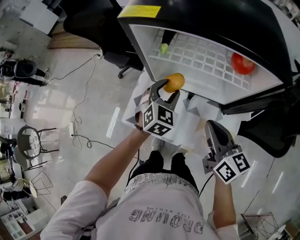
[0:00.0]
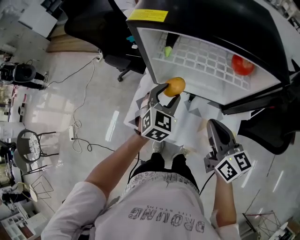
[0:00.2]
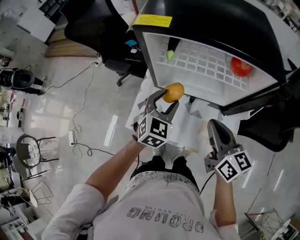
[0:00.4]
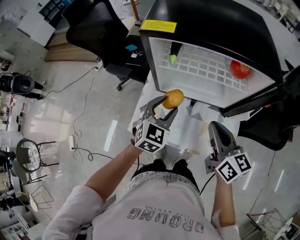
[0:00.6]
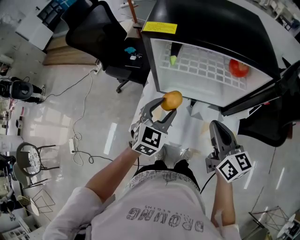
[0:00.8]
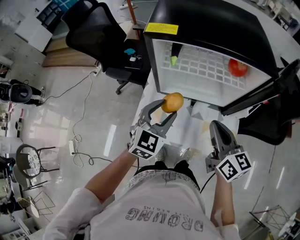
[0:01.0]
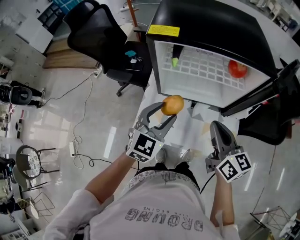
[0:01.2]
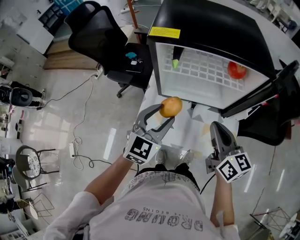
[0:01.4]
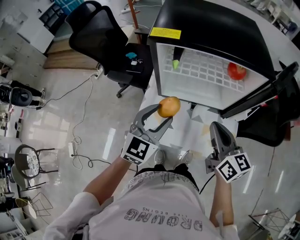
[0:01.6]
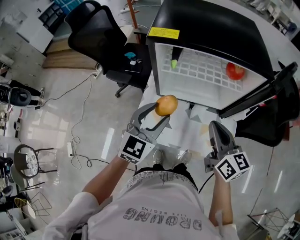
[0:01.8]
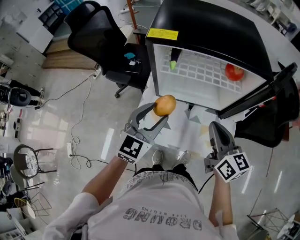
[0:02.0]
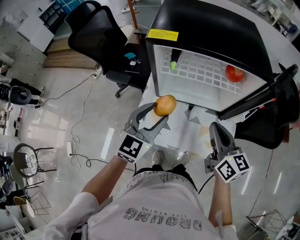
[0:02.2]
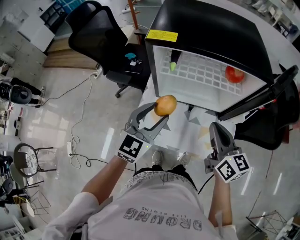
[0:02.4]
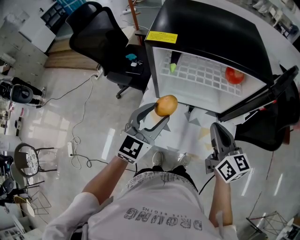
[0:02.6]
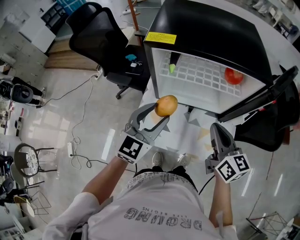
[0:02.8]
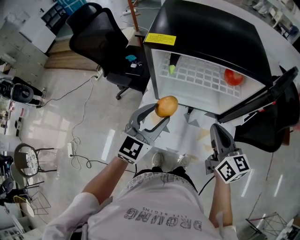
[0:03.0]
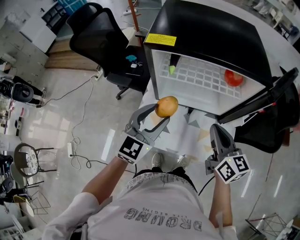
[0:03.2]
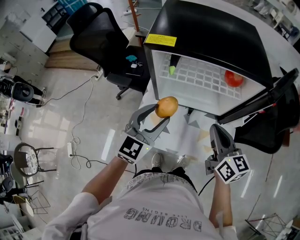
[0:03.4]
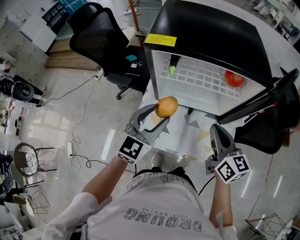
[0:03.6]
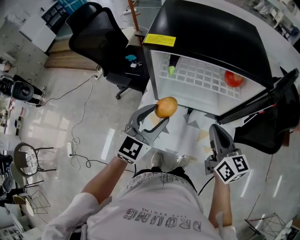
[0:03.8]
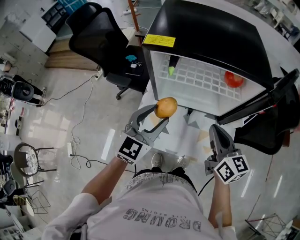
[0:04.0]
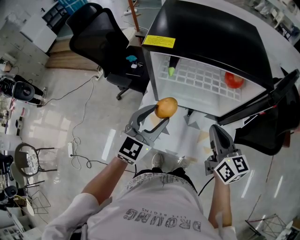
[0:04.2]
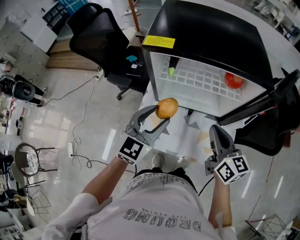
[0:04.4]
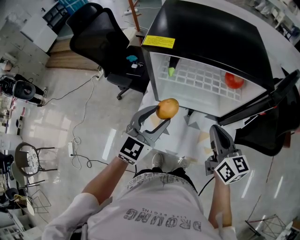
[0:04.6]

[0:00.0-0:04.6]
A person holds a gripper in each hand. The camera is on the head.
0:00.0 to 0:01.6: The right gripper is displaced upward by approximately 5 cm; the left gripper travels upward, backward and to the left by about 15 cm, and rotates some 20 degrees.
0:01.6 to 0:04.6: There are only small adjustments of the grippers.

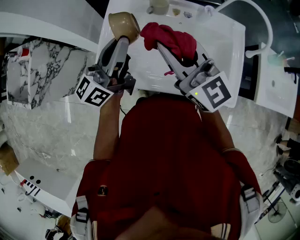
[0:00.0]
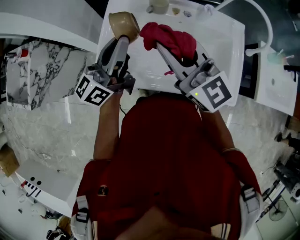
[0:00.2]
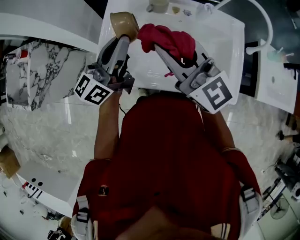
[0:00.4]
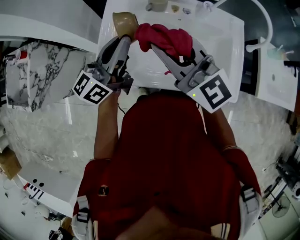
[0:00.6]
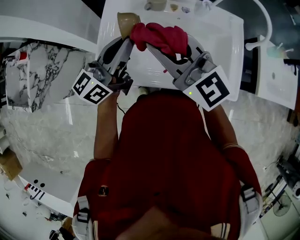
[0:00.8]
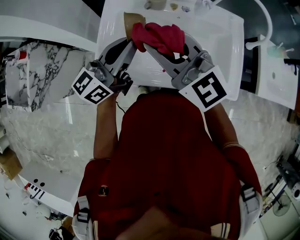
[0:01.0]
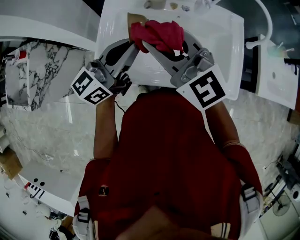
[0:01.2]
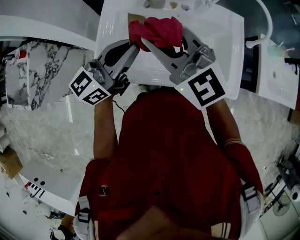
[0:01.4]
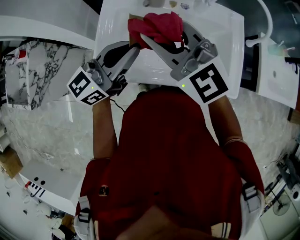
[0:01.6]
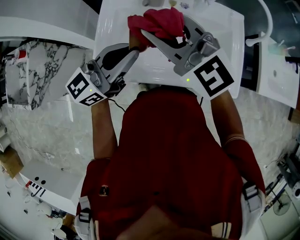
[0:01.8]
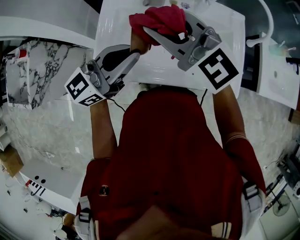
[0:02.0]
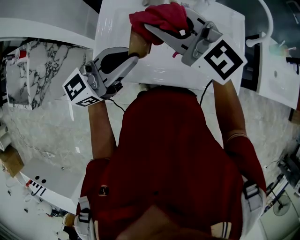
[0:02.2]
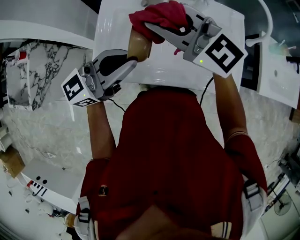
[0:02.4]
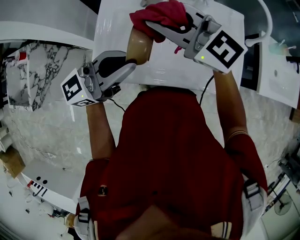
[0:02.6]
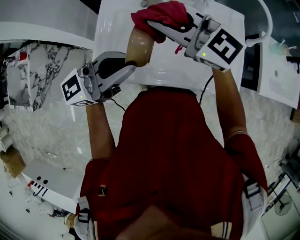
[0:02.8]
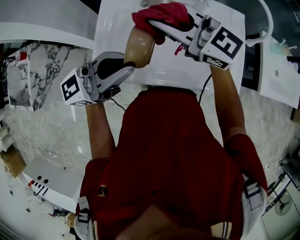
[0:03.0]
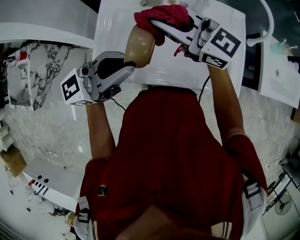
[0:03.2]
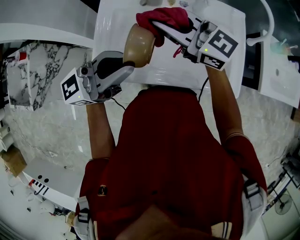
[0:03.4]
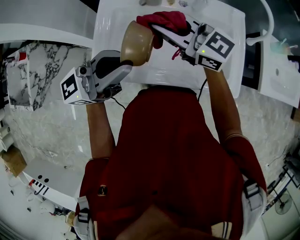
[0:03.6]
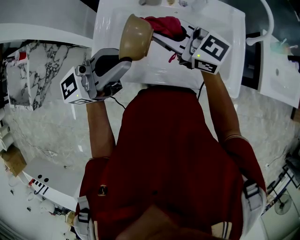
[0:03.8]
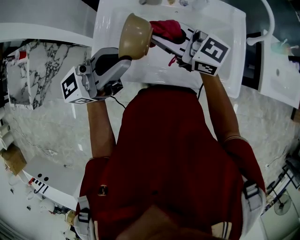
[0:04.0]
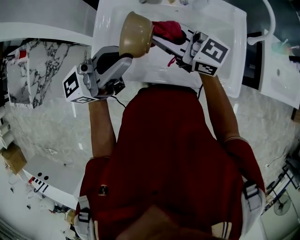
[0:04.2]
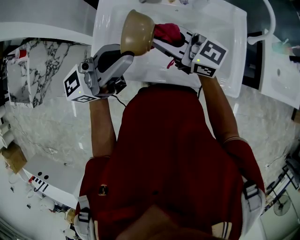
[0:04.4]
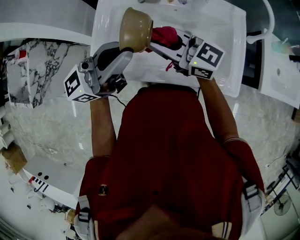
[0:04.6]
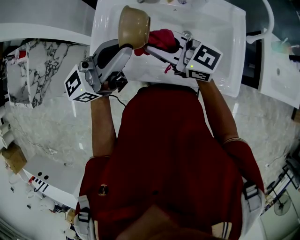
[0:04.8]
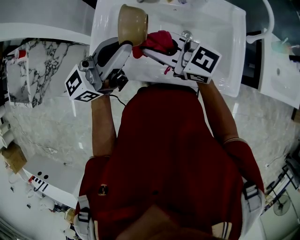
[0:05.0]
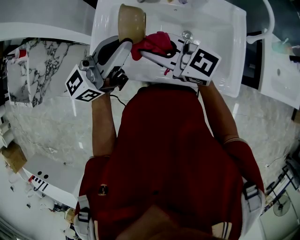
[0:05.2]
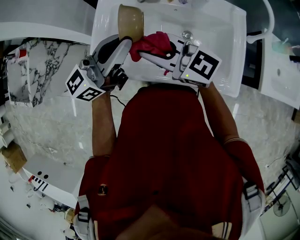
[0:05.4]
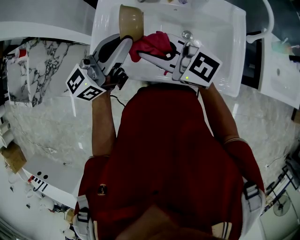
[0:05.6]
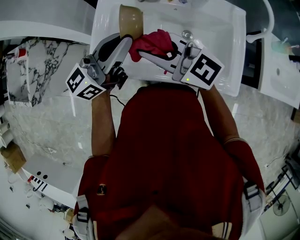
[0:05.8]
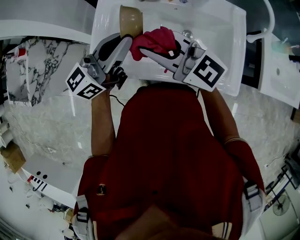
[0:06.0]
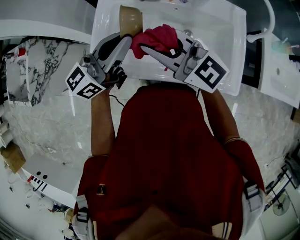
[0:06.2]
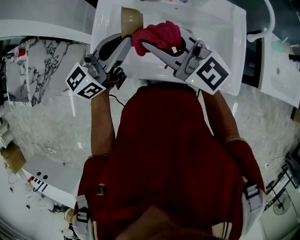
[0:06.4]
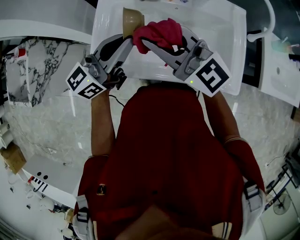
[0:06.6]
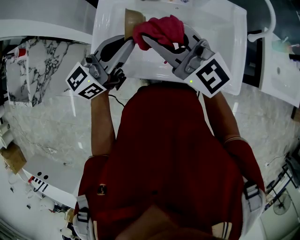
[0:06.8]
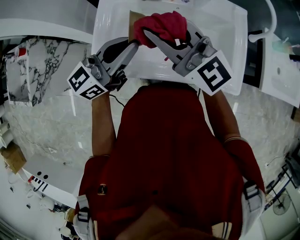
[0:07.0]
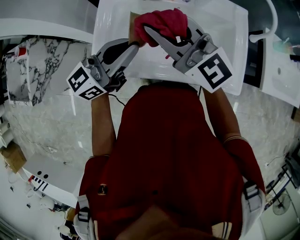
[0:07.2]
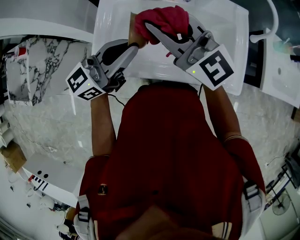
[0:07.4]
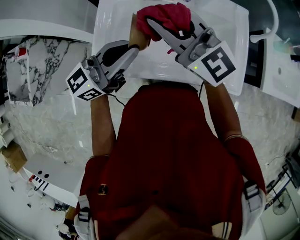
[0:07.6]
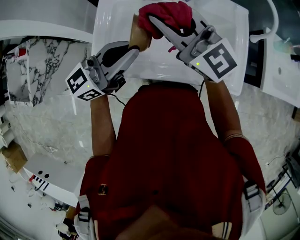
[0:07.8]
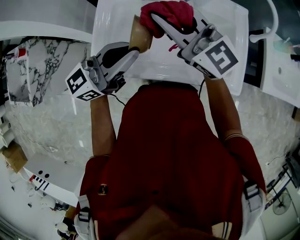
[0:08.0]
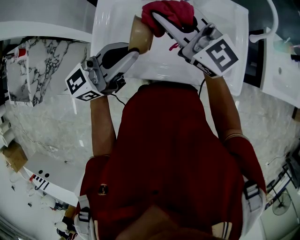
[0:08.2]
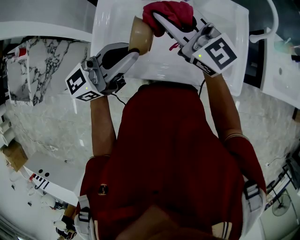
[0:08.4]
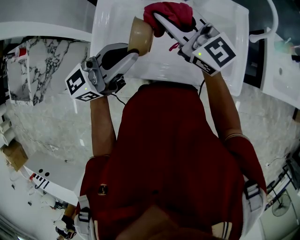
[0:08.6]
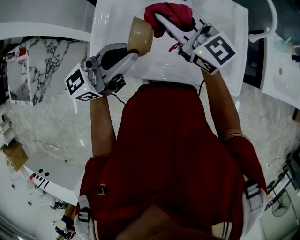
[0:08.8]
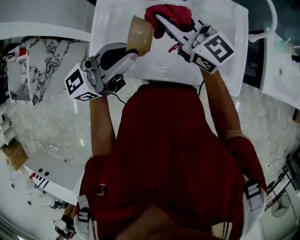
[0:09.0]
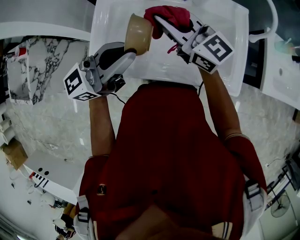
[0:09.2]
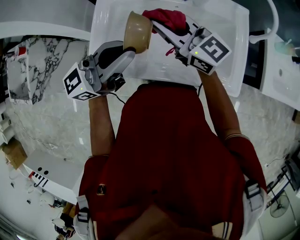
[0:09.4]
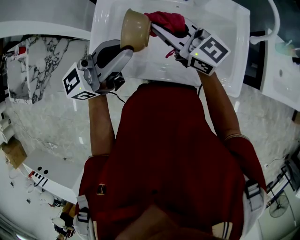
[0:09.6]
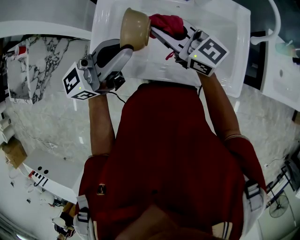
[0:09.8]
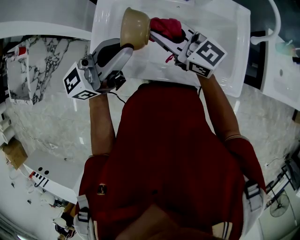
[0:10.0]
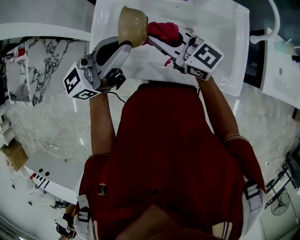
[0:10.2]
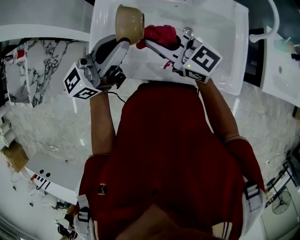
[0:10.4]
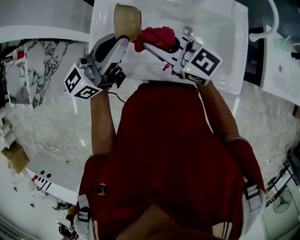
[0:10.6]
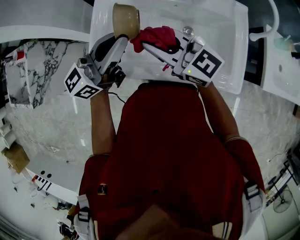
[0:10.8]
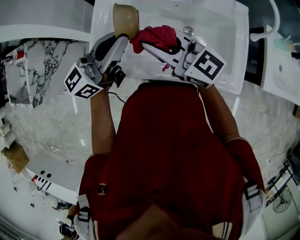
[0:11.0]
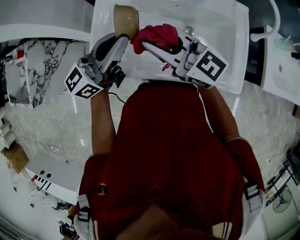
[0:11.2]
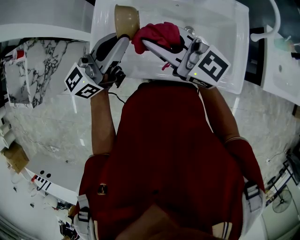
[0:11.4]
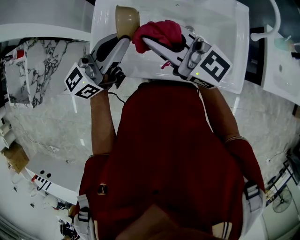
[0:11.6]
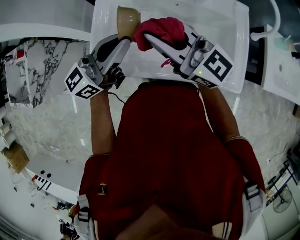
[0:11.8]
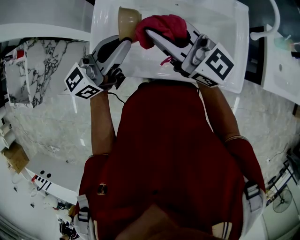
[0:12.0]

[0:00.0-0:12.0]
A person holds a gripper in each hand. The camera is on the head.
0:00.0 to 0:01.6: The right gripper swivels about 30 degrees, while the left gripper ends up roughly 5 cm from where it was, and swivels roughly 30 degrees.
0:01.6 to 0:03.0: The right gripper ends up about 5 cm from where it was, and rotates roughly 30 degrees.
0:03.0 to 0:04.4: The right gripper goes roughly 5 cm downward.
0:04.4 to 0:06.0: The right gripper shifts by about 5 cm, while the left gripper moves some 5 cm.
0:06.0 to 0:07.6: The right gripper travels forward by about 5 cm.
0:07.6 to 0:09.0: The right gripper shifts some 5 cm downward.
0:09.0 to 0:10.4: The right gripper moves backward, some 5 cm.
0:10.4 to 0:12.0: The right gripper shifts some 10 cm upward.

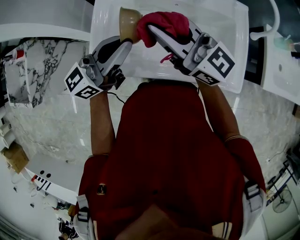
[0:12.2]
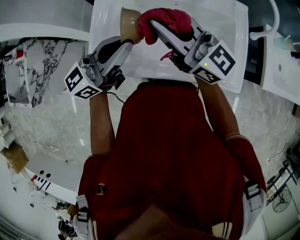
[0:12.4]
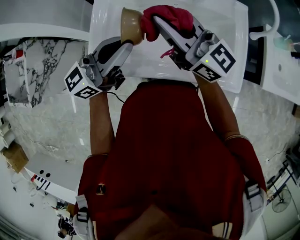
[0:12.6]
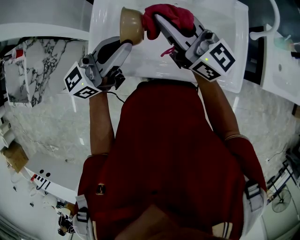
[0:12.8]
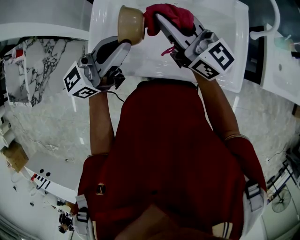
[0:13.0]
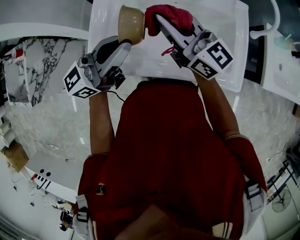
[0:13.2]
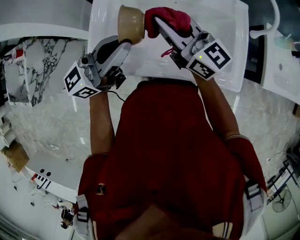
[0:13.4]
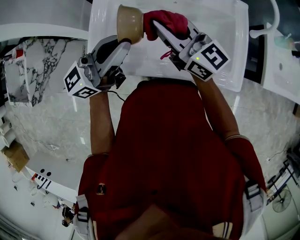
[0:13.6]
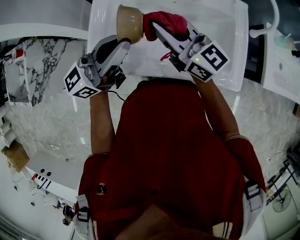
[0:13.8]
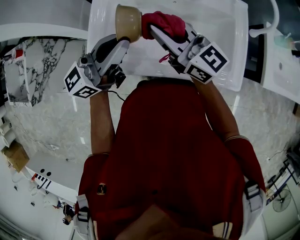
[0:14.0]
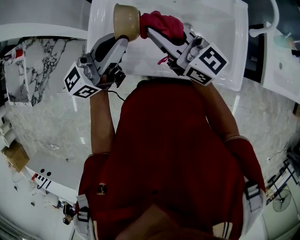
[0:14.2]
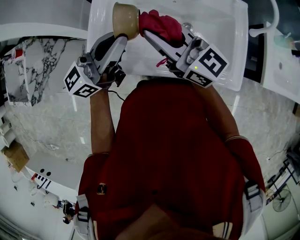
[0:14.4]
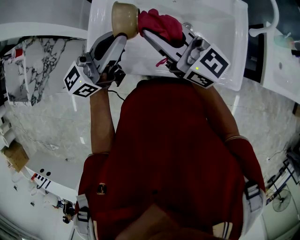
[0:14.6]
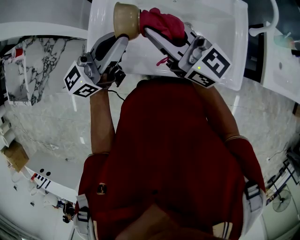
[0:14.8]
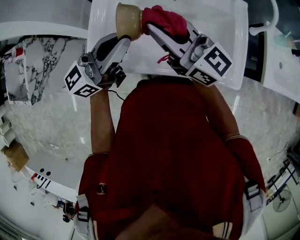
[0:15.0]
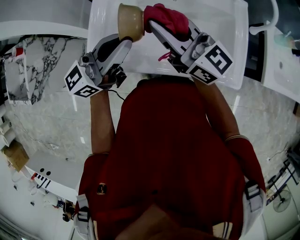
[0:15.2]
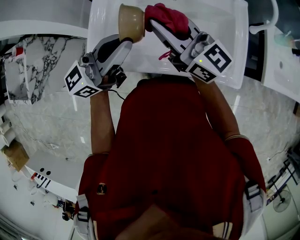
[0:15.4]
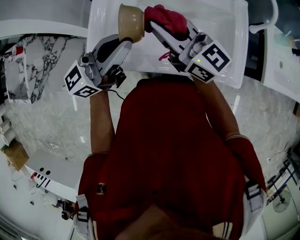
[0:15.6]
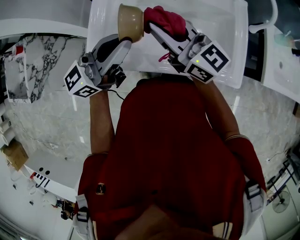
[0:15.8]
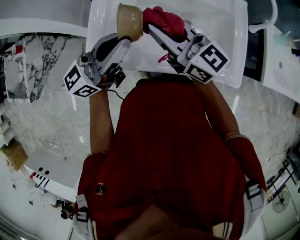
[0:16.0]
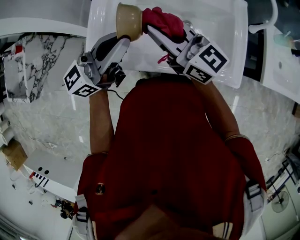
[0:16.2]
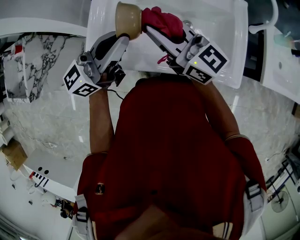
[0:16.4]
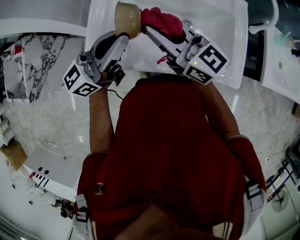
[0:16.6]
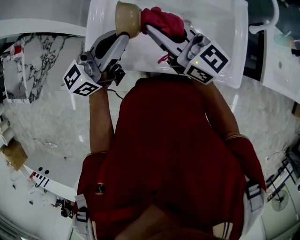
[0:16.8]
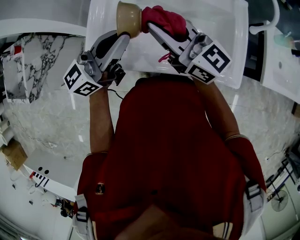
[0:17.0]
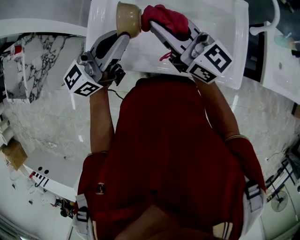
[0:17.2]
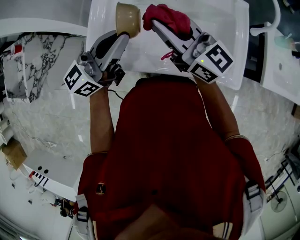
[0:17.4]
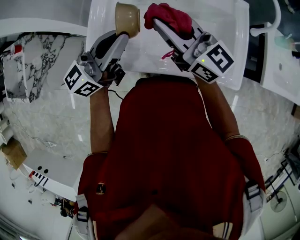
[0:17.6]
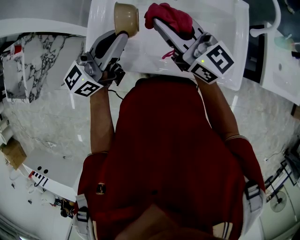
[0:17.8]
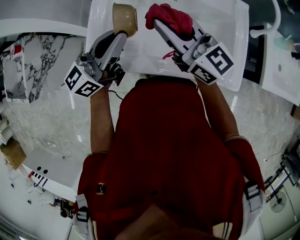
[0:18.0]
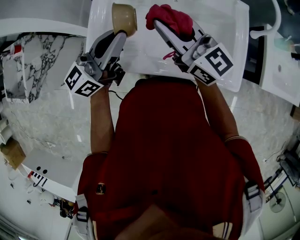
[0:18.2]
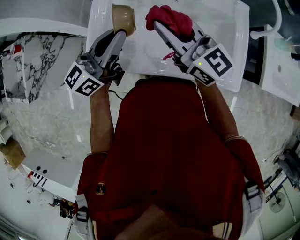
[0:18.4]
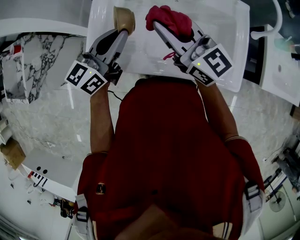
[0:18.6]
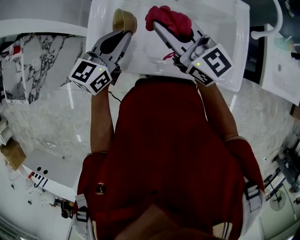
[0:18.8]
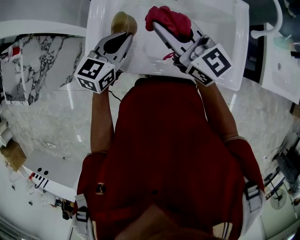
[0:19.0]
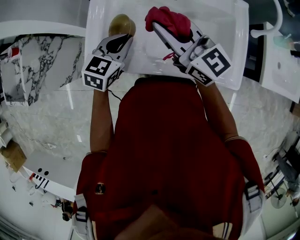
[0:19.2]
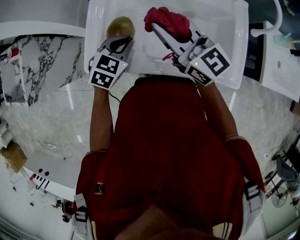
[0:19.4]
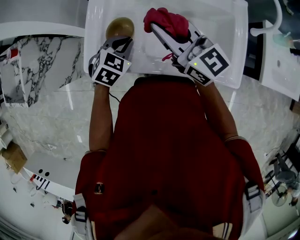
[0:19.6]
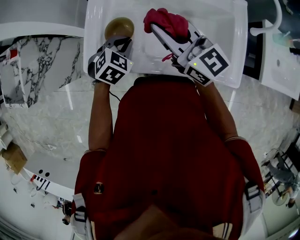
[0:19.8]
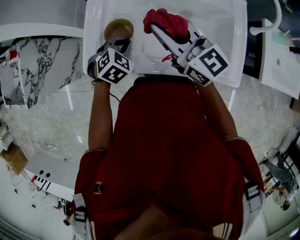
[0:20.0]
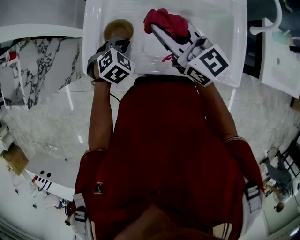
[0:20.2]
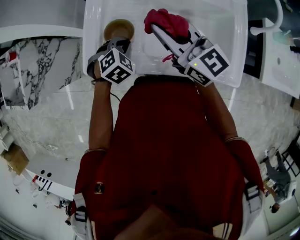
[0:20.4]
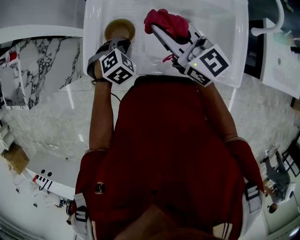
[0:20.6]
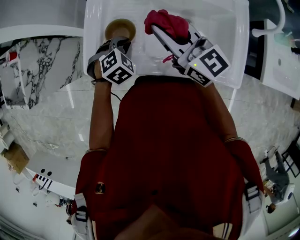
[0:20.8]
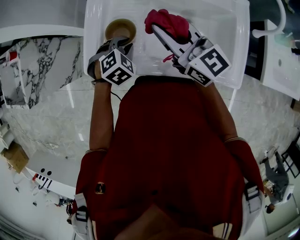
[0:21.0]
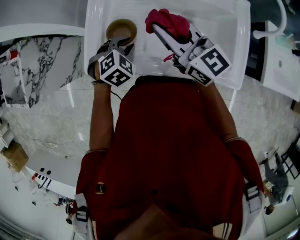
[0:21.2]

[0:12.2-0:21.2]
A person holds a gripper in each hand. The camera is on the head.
0:12.2 to 0:13.8: The right gripper travels downward by roughly 5 cm.
0:13.8 to 0:18.2: There are only small adjustments of the grippers.
0:18.2 to 0:19.8: The left gripper heads downward, covering approximately 20 cm, and tilts its fingers approximately 70 degrees downward.
0:19.8 to 0:21.2: The grippers move only a little.
